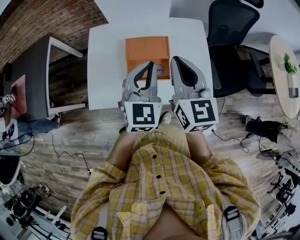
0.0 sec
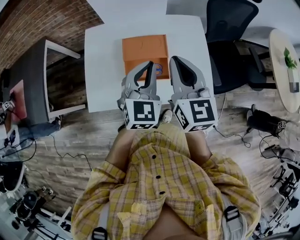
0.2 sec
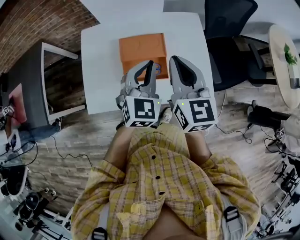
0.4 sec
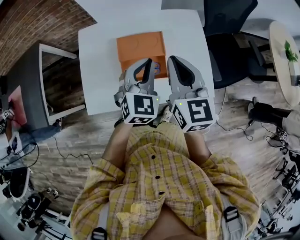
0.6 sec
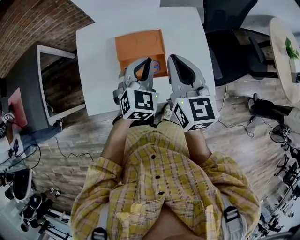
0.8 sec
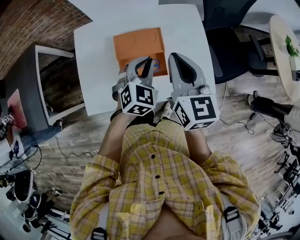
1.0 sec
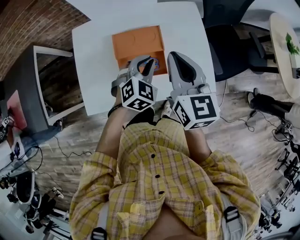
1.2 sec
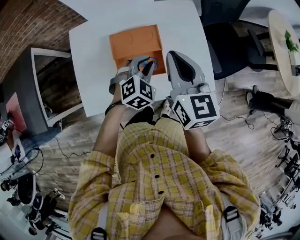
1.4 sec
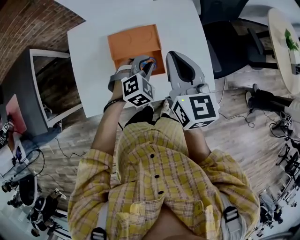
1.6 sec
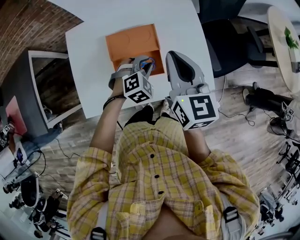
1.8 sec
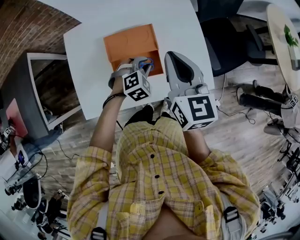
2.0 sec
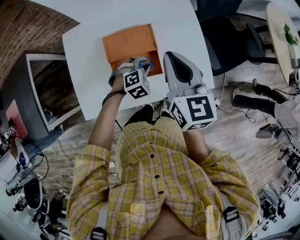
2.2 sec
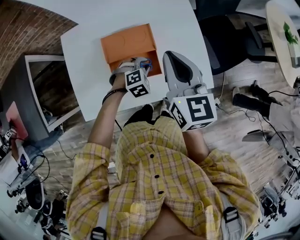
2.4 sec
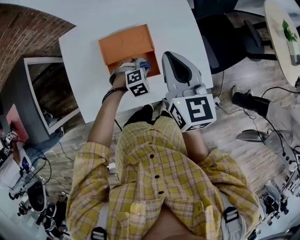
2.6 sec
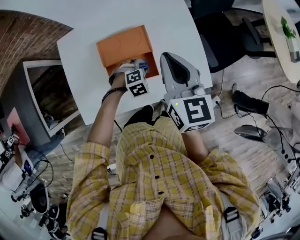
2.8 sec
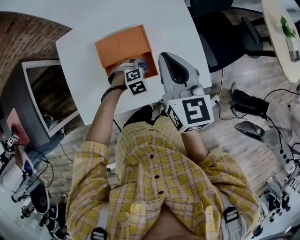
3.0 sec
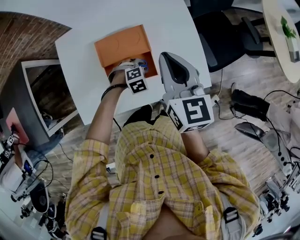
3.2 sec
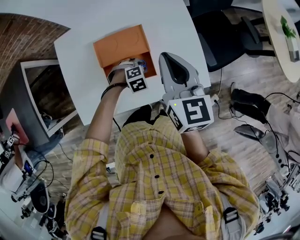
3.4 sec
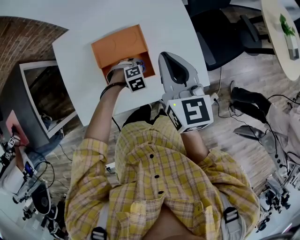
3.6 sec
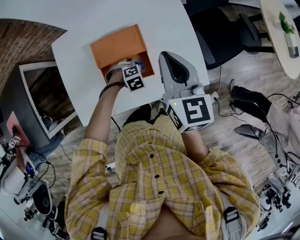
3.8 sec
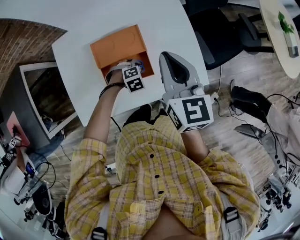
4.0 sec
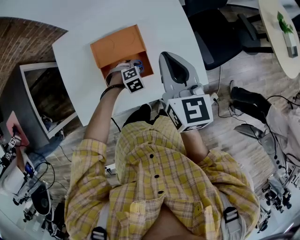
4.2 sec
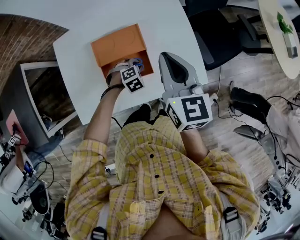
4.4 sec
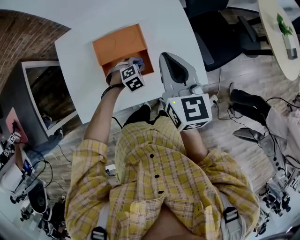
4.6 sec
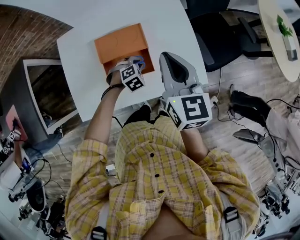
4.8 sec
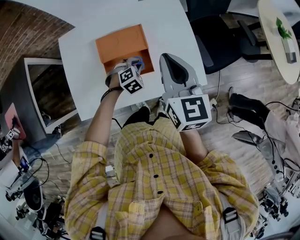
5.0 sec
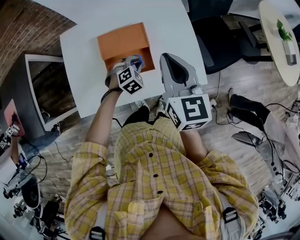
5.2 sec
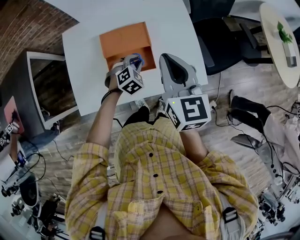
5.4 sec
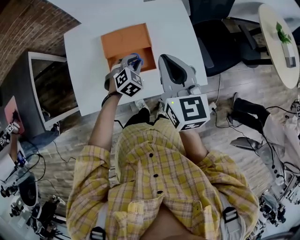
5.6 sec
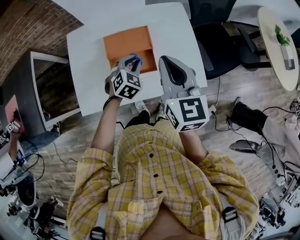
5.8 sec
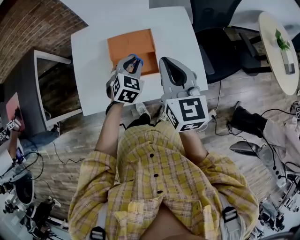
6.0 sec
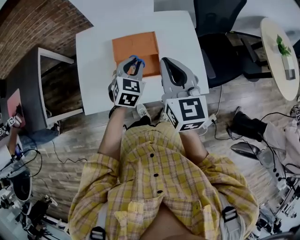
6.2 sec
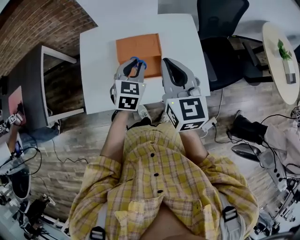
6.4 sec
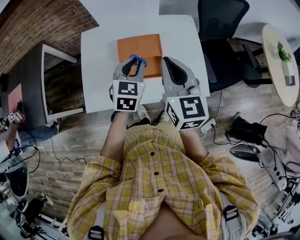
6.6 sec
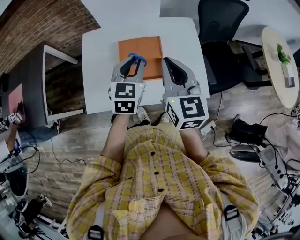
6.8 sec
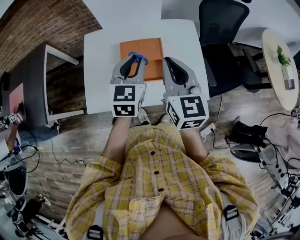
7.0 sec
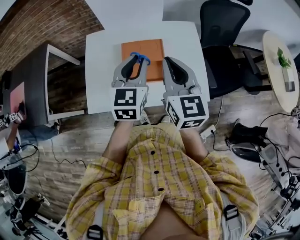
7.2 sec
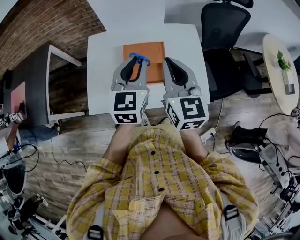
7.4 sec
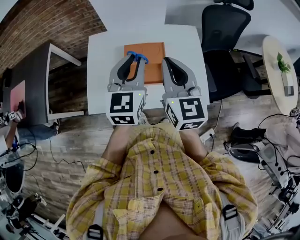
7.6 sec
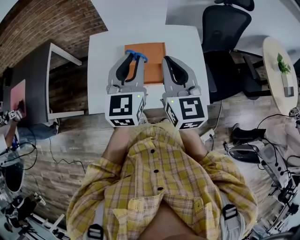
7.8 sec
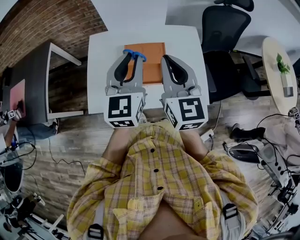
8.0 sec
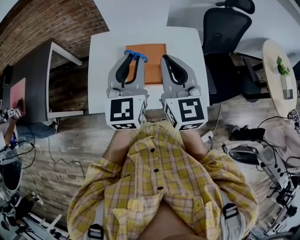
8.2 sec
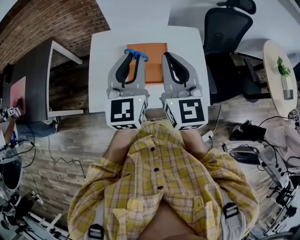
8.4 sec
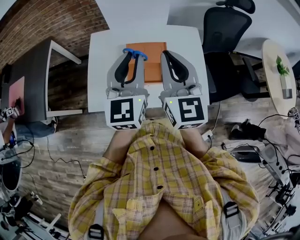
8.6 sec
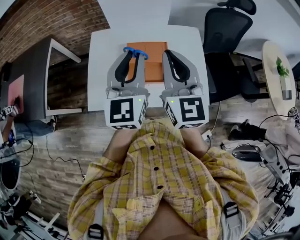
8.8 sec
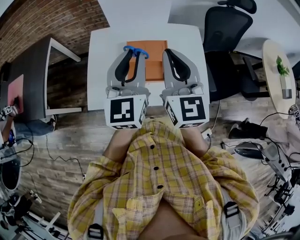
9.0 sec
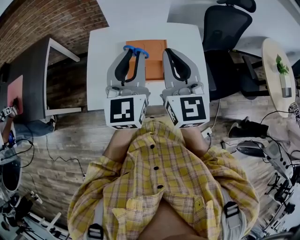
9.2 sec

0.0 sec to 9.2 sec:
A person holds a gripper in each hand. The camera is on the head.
0.0 sec to 1.6 sec: The left gripper is displaced downward by roughly 20 cm, and angles its fingers downward, by some 30 degrees. Meanwhile the right gripper shifts approximately 10 cm downward and forward.
1.6 sec to 3.0 sec: The left gripper moves downward, roughly 15 cm, and rotates approximately 30 degrees.
3.0 sec to 4.6 sec: There are only small adjustments of the grippers.
4.6 sec to 6.2 sec: The left gripper heads upward, covering some 20 cm, and tips its fingers upward by roughly 30 degrees. Meanwhile the right gripper is displaced backward and upward by some 10 cm.
6.2 sec to 7.6 sec: The right gripper shifts by some 5 cm, while the left gripper goes roughly 20 cm upward, and swivels about 30 degrees.
7.6 sec to 9.2 sec: The left gripper ends up approximately 5 cm from where it was.

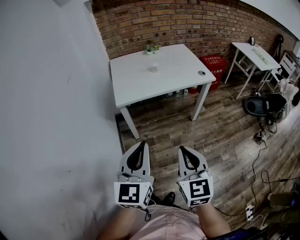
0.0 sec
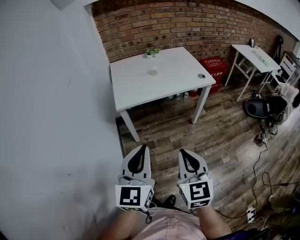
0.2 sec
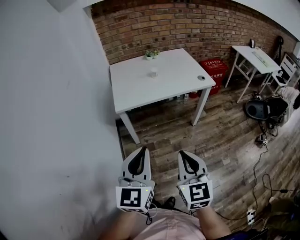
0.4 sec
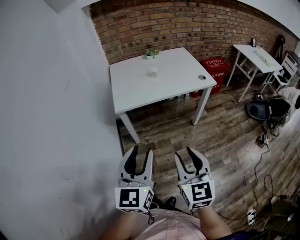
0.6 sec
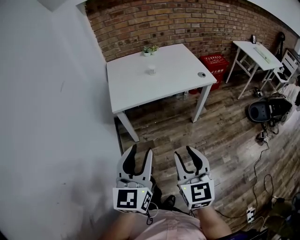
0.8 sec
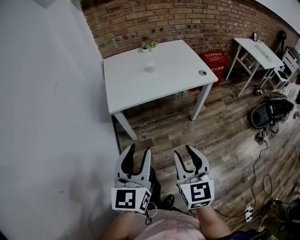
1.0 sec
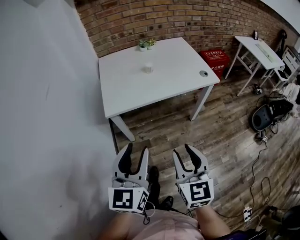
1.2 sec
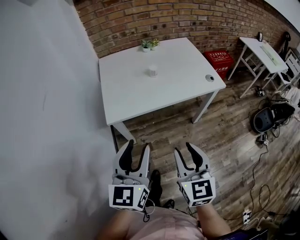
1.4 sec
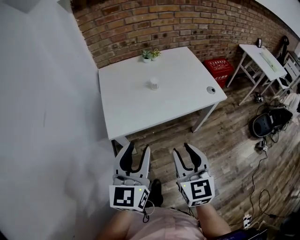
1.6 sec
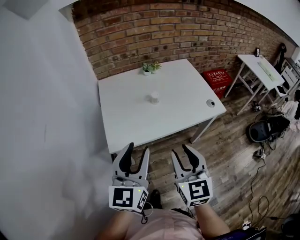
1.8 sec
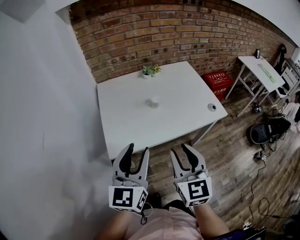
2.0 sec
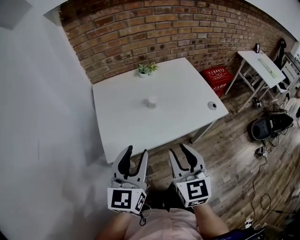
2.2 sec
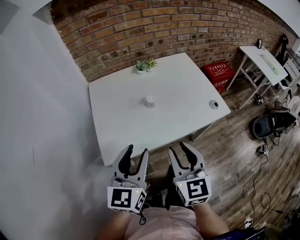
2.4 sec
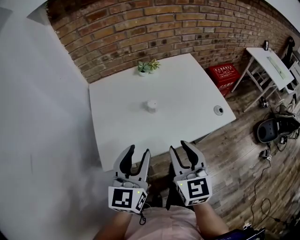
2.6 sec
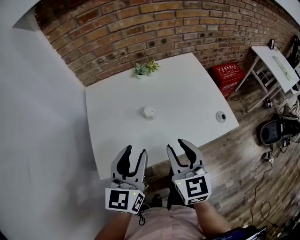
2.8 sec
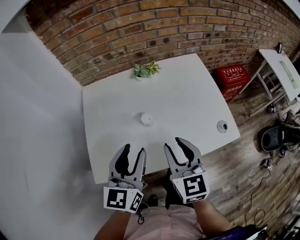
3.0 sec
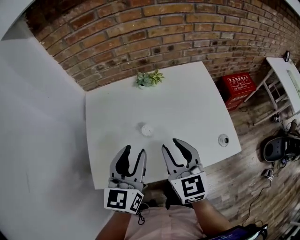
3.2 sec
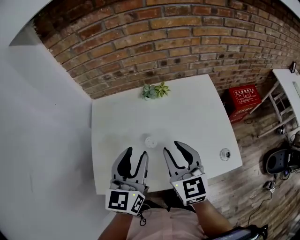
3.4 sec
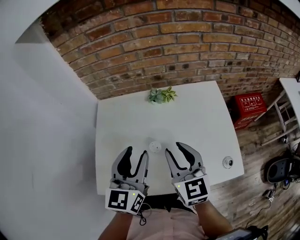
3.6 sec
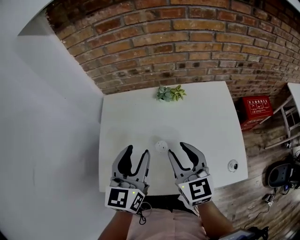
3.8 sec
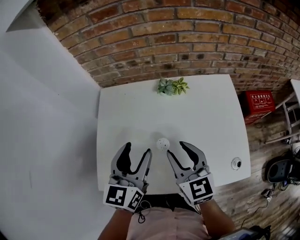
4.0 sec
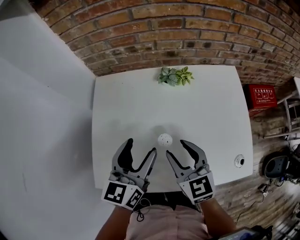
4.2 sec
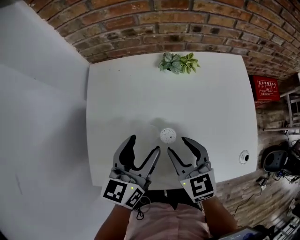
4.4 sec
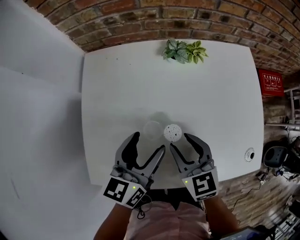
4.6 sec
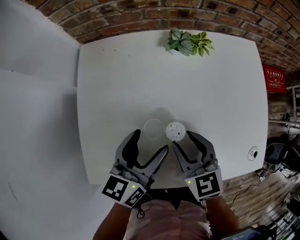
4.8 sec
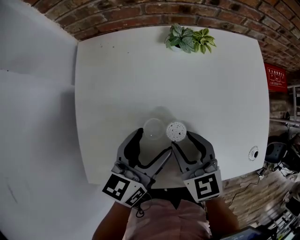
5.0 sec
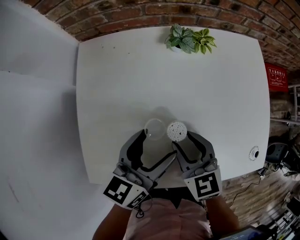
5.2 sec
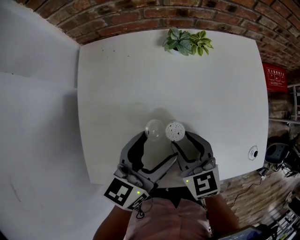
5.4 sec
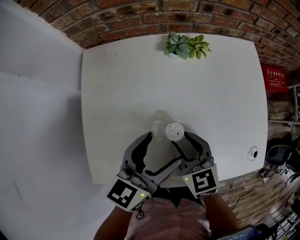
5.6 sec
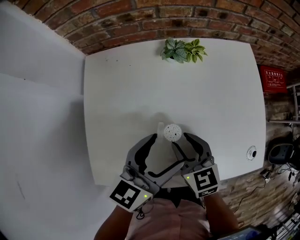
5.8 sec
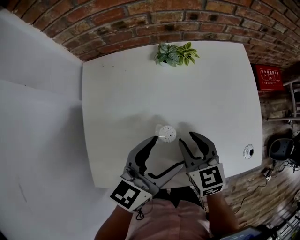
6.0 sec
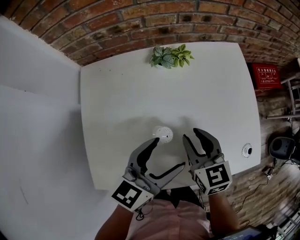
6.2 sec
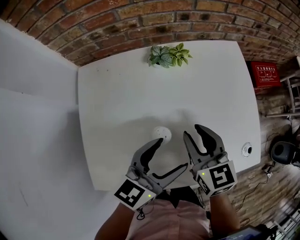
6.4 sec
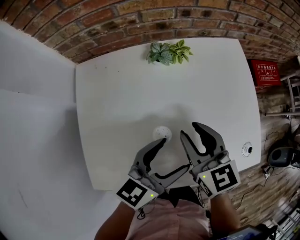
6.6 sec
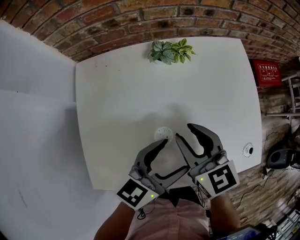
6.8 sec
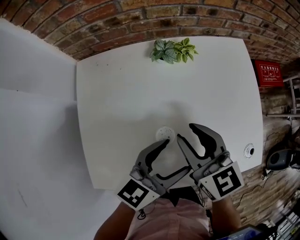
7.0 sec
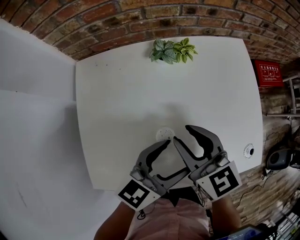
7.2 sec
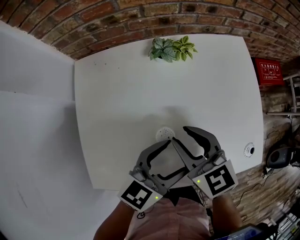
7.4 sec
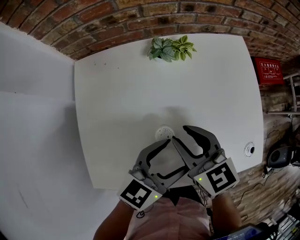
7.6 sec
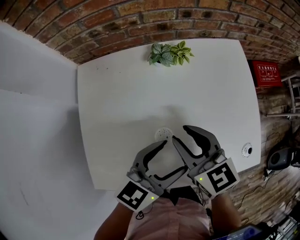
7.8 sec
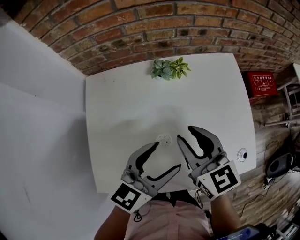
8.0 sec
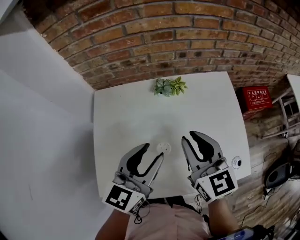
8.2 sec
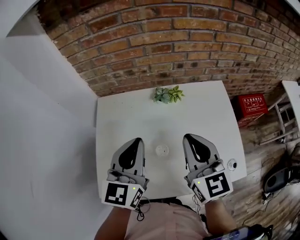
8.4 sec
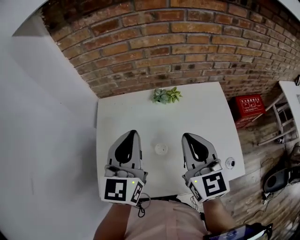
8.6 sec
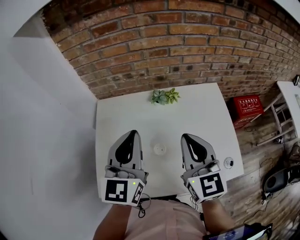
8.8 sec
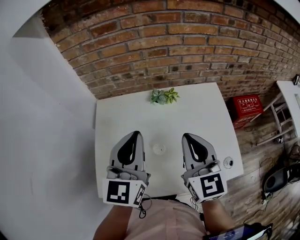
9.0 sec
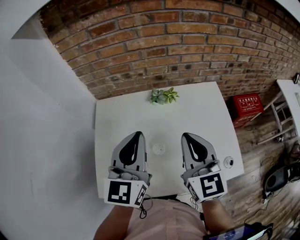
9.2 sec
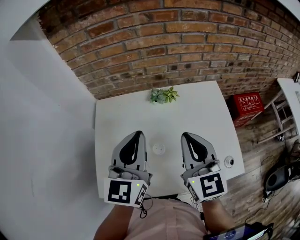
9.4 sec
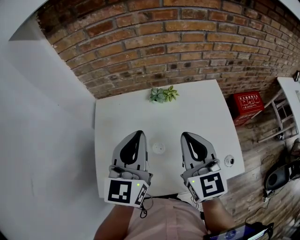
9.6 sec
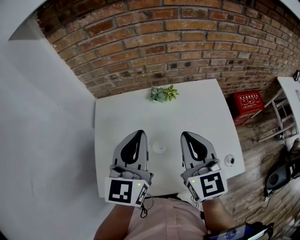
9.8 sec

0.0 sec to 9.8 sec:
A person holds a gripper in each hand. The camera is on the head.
0.0 sec to 1.4 sec: The two grippers go approximately 20 cm forward. The right gripper opens, while the left gripper opens its fingers.
1.4 sec to 2.8 sec: Both grippers travel together forward, roughly 30 cm.
2.8 sec to 4.2 sec: The two grippers go about 15 cm forward. The right gripper swivels some 30 degrees.
4.2 sec to 5.6 sec: The right gripper goes some 10 cm downward. The left gripper moves downward, approximately 5 cm, and swivels approximately 20 degrees.
5.6 sec to 7.0 sec: The left gripper goes roughly 5 cm to the right; the right gripper goes approximately 10 cm upward.
7.0 sec to 8.4 sec: The right gripper travels upward by approximately 15 cm, and closes its fingers. The left gripper travels upward and to the left by about 20 cm, changes its angle by about 40 degrees, and closes up.
8.4 sec to 9.8 sec: There are only small adjustments of the grippers.

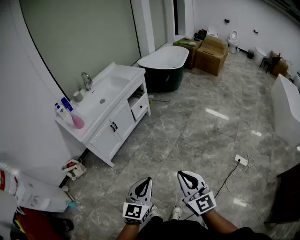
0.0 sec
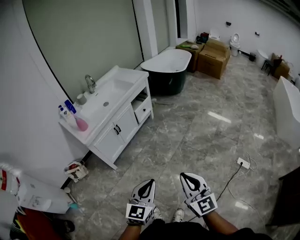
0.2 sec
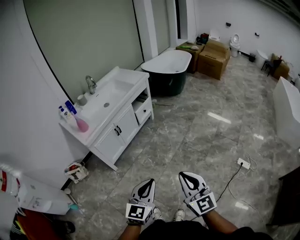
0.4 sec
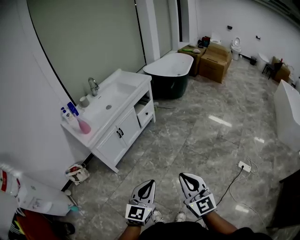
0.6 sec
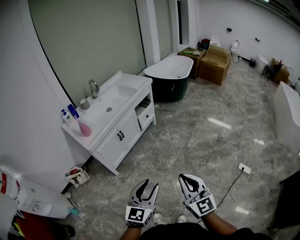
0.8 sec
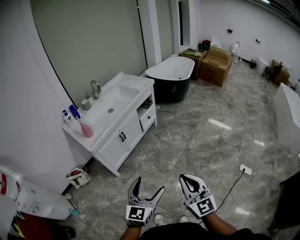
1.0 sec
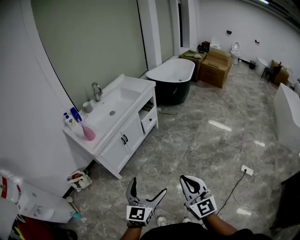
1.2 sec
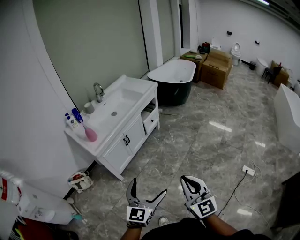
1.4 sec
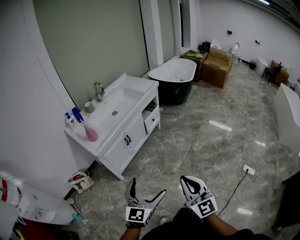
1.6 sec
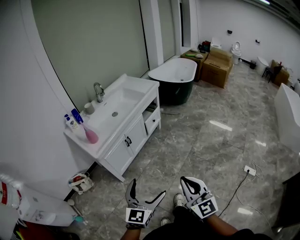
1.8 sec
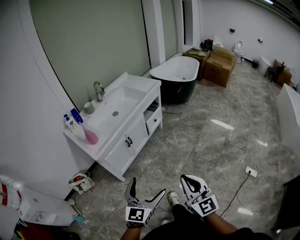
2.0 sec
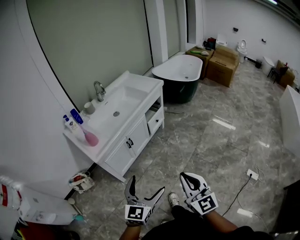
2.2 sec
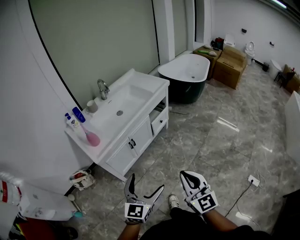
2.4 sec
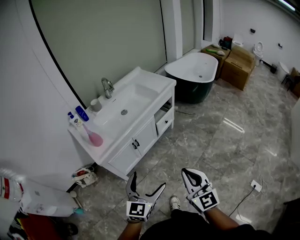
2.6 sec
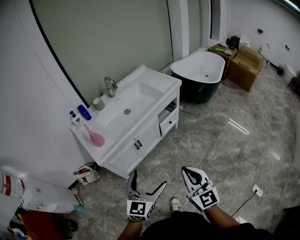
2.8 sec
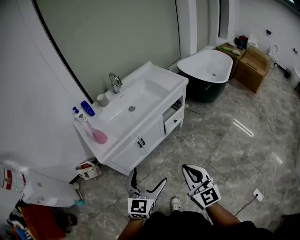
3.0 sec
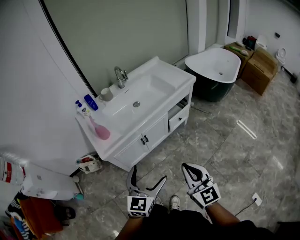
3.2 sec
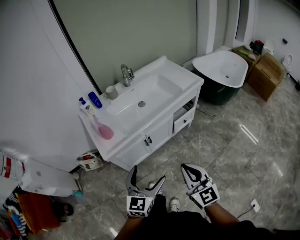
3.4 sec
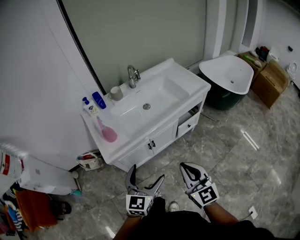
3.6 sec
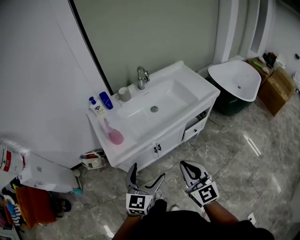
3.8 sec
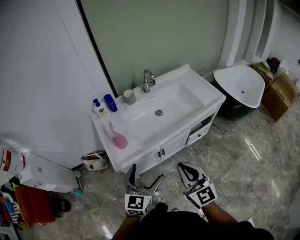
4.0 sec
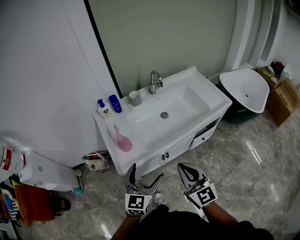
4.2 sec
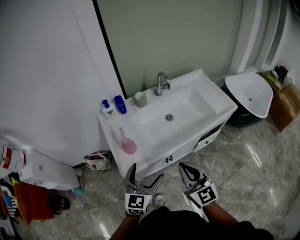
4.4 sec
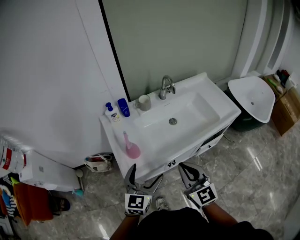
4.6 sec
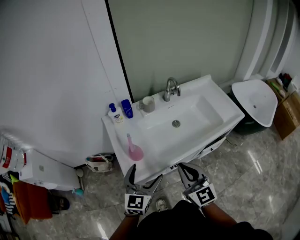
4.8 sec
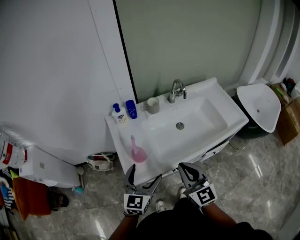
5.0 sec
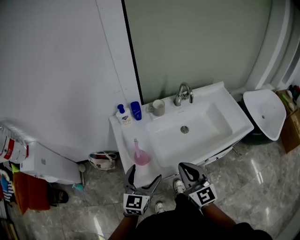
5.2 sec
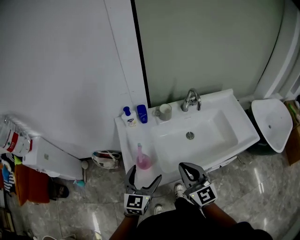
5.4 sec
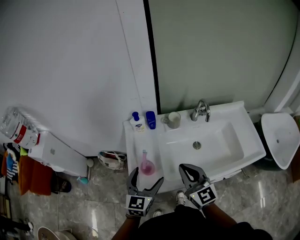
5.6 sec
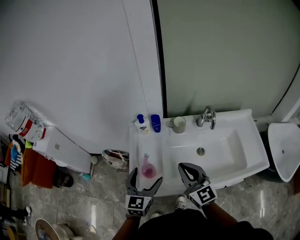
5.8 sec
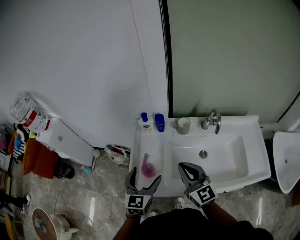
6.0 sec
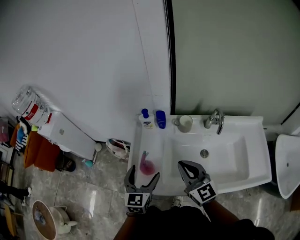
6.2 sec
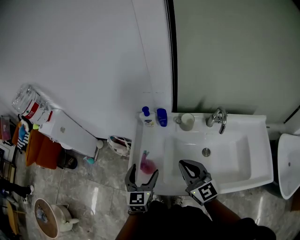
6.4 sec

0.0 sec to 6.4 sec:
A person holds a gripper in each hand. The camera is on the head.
0.0 sec to 1.6 sec: The grippers both shift to the left and forward by some 15 cm. The left gripper opens up.
1.6 sec to 3.2 sec: The two grippers go roughly 30 cm forward. The left gripper changes its angle by roughly 20 degrees. The right gripper rotates approximately 20 degrees.
3.2 sec to 4.8 sec: Both grippers move forward and to the left, roughly 35 cm.
4.8 sec to 6.4 sec: The right gripper ends up about 20 cm from where it was, and swivels some 30 degrees. Meanwhile the left gripper moves about 15 cm, and rotates roughly 40 degrees.
